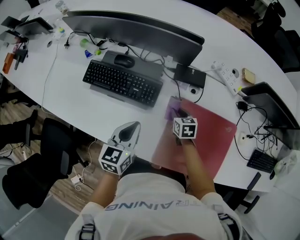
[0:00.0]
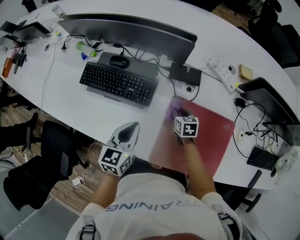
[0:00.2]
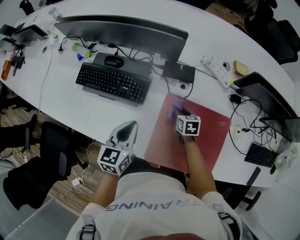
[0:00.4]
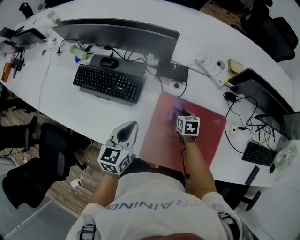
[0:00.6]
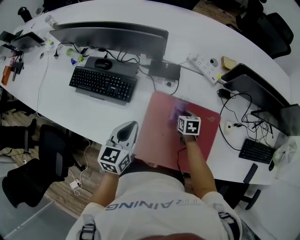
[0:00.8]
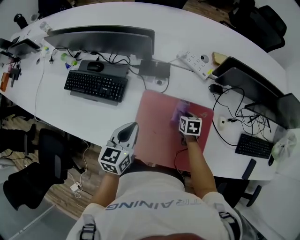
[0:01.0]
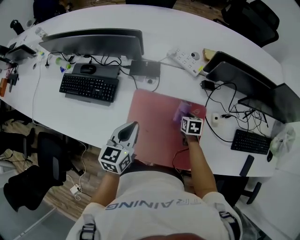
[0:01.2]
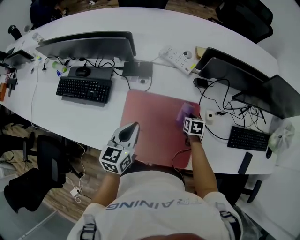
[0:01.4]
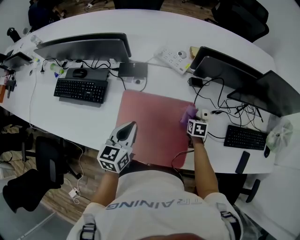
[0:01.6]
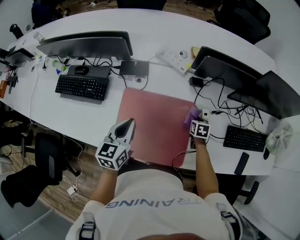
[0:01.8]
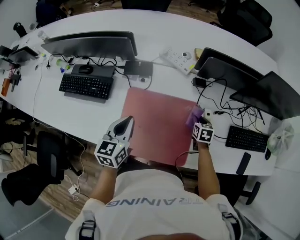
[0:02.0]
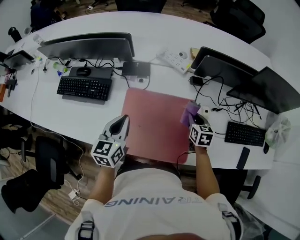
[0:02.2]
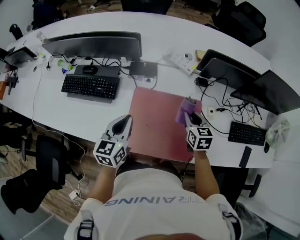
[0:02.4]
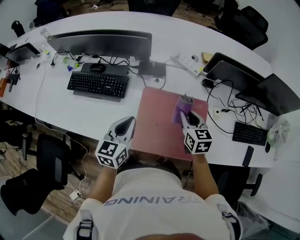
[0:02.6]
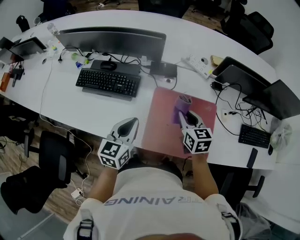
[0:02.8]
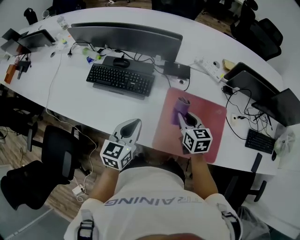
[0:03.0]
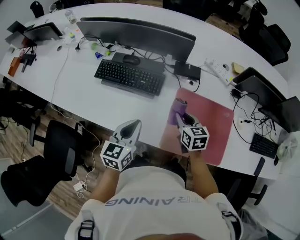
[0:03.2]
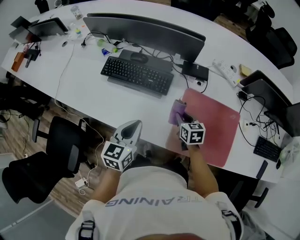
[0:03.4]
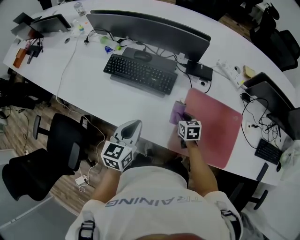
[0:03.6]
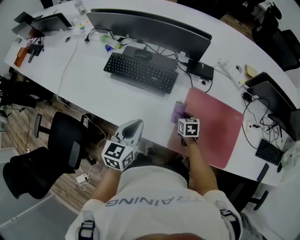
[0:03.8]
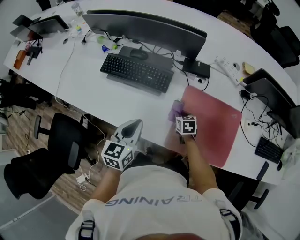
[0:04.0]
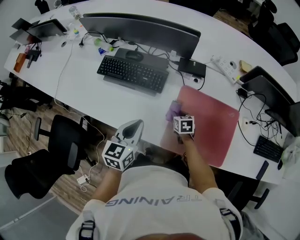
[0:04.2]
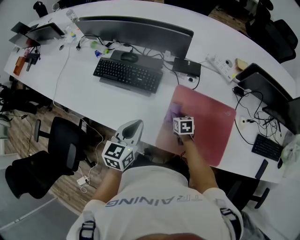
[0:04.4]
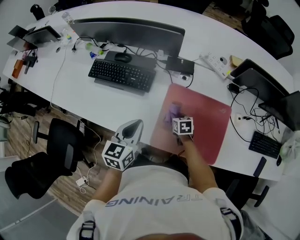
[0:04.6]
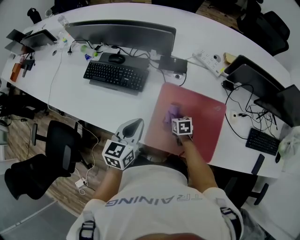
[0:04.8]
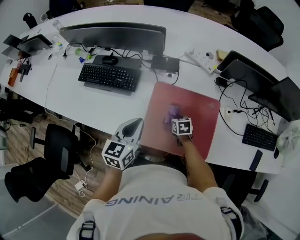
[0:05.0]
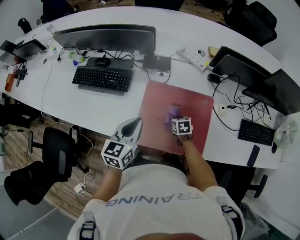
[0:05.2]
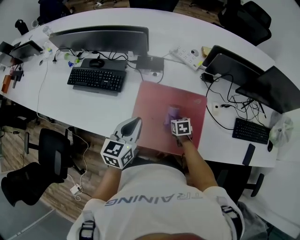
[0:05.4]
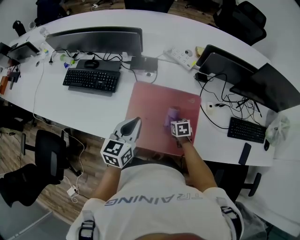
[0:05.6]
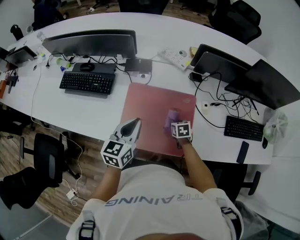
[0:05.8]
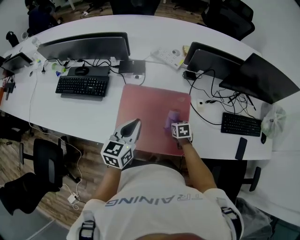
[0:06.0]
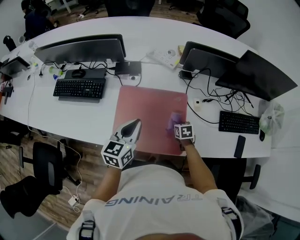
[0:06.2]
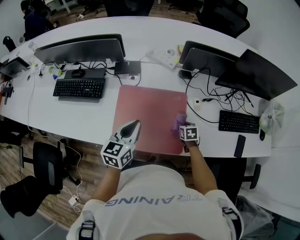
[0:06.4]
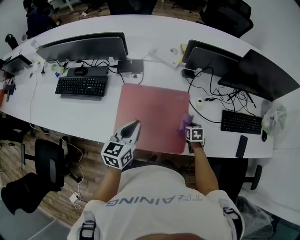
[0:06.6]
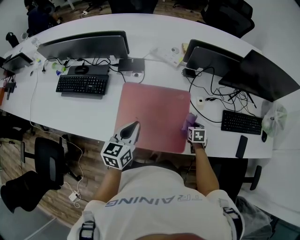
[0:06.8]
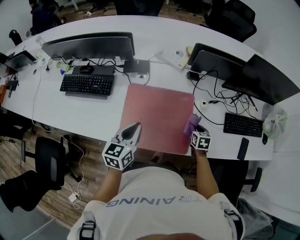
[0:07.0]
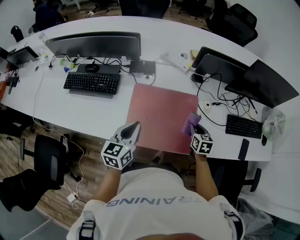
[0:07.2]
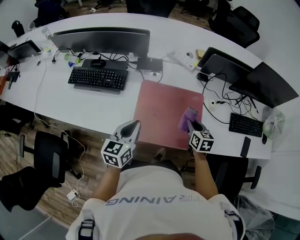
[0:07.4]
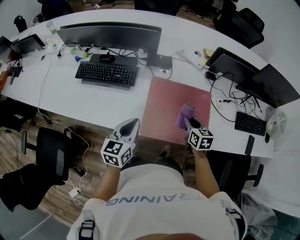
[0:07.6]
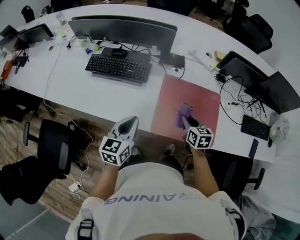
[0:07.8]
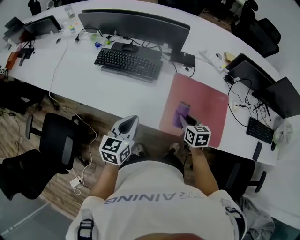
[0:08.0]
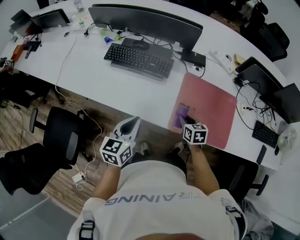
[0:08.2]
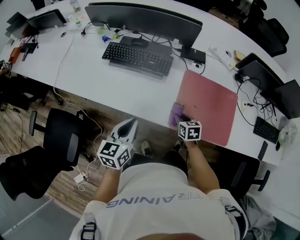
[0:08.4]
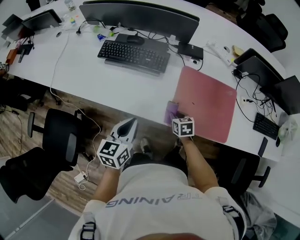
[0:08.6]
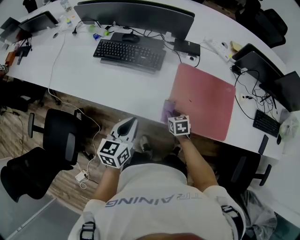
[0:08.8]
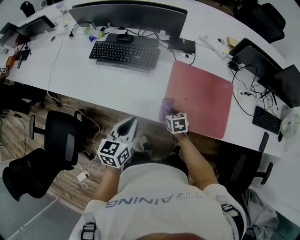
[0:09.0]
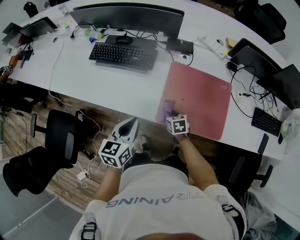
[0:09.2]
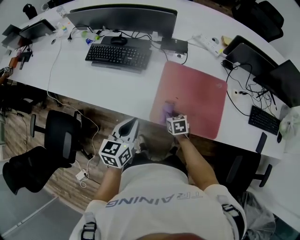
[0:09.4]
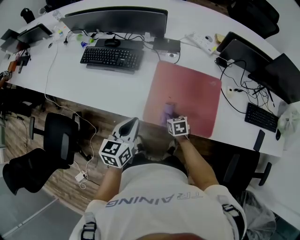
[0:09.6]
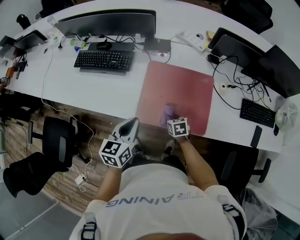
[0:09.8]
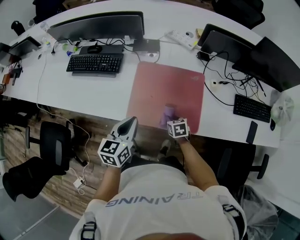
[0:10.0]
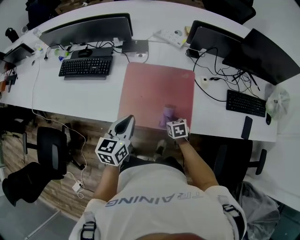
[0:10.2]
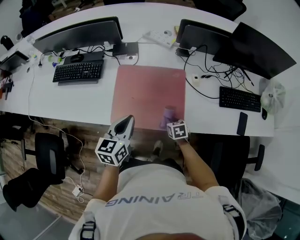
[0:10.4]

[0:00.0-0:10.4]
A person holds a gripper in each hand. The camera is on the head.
0.0 to 1.4 s: The two grippers go about 30 cm to the right.
1.4 to 3.0 s: The left gripper goes roughly 20 cm to the left; the right gripper moves to the left and upward, approximately 35 cm, and turns by approximately 30 degrees.
3.0 to 4.4 s: The right gripper heads downward, covering some 20 cm, and turns by some 20 degrees. The left gripper goes to the left and returns, about 10 cm each way.
4.4 to 6.0 s: Both grippers travel together to the right, approximately 25 cm.
6.0 to 7.4 s: The right gripper moves upward, some 15 cm, travels to the right and back again, some 10 cm each way, and changes its angle by about 20 degrees. The left gripper travels to the left and backward by roughly 15 cm.
7.4 to 9.0 s: The left gripper shifts some 15 cm to the left, while the right gripper is displaced to the left and downward by some 30 cm, and rotates some 30 degrees.
9.0 to 10.4 s: The grippers both shift to the right by some 30 cm.

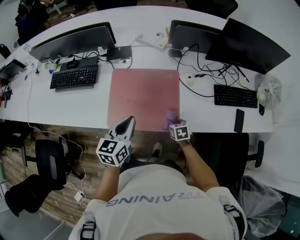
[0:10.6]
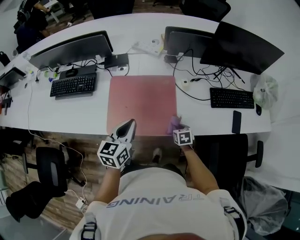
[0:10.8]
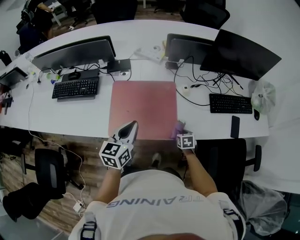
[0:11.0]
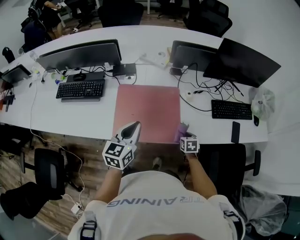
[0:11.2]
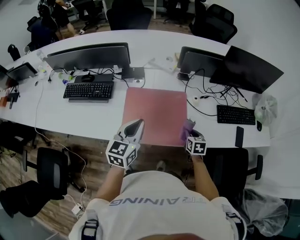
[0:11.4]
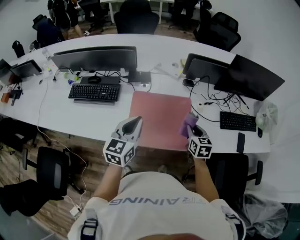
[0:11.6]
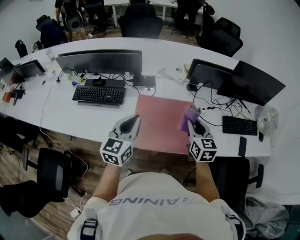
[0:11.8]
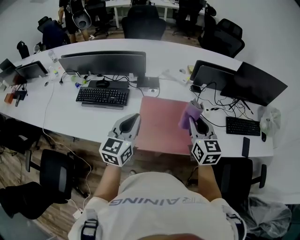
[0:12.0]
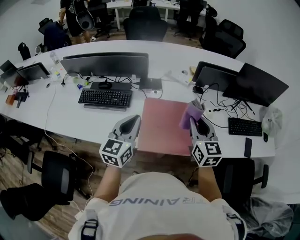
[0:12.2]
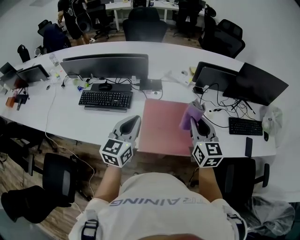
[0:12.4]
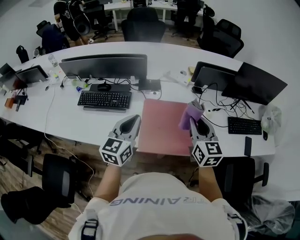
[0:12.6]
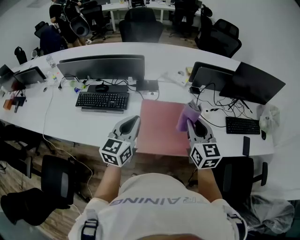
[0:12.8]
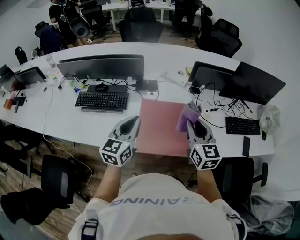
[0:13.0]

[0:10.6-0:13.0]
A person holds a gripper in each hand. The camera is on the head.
10.6 to 11.8 s: The left gripper goes approximately 20 cm upward and to the left. Meanwhile the right gripper heads upward, covering about 30 cm, and angles its fingers upward, by roughly 40 degrees.
11.8 to 13.0 s: The right gripper travels upward by about 5 cm.

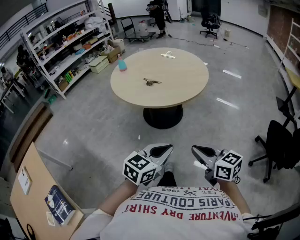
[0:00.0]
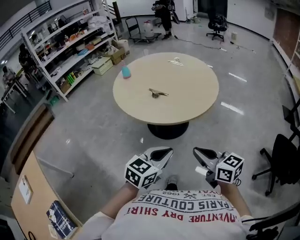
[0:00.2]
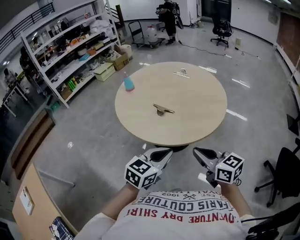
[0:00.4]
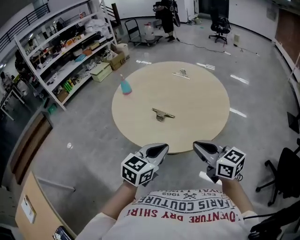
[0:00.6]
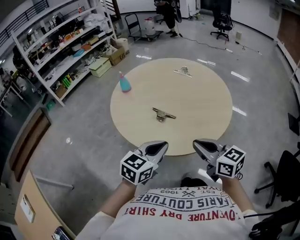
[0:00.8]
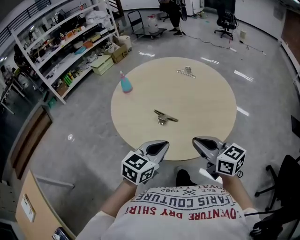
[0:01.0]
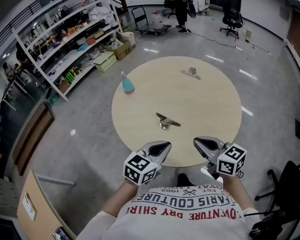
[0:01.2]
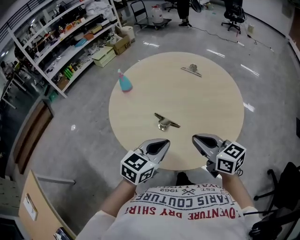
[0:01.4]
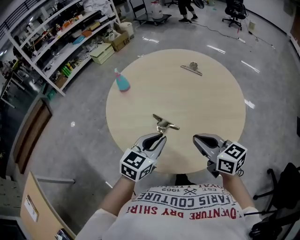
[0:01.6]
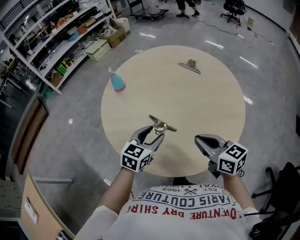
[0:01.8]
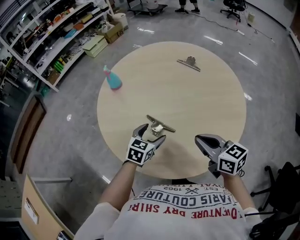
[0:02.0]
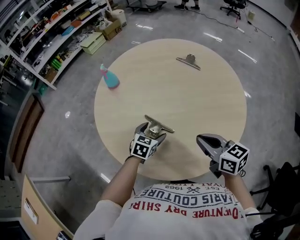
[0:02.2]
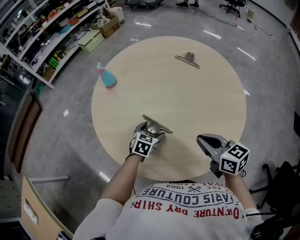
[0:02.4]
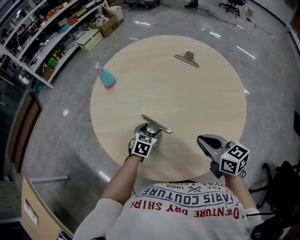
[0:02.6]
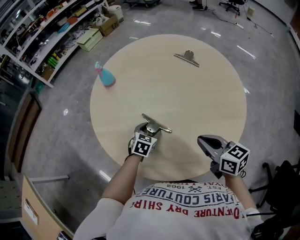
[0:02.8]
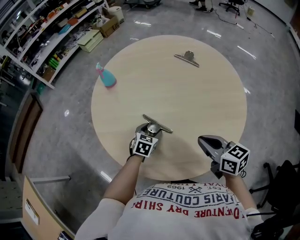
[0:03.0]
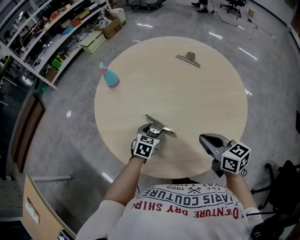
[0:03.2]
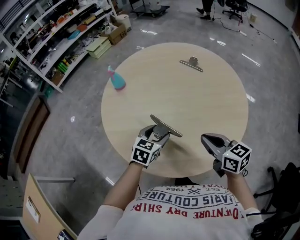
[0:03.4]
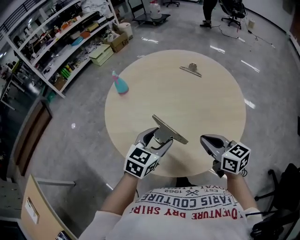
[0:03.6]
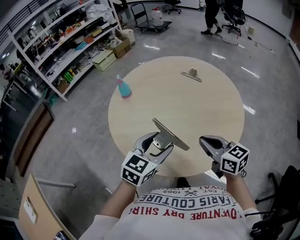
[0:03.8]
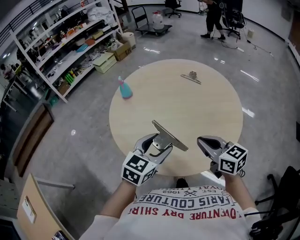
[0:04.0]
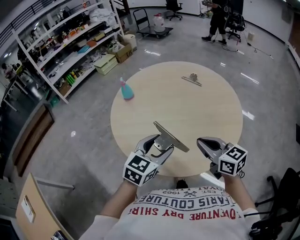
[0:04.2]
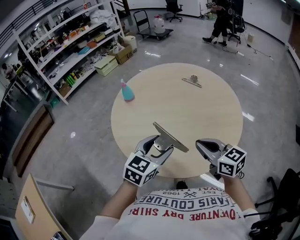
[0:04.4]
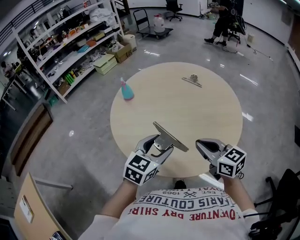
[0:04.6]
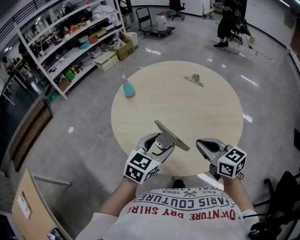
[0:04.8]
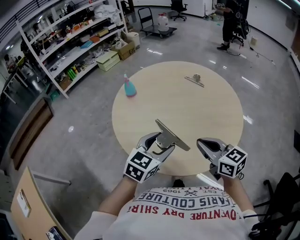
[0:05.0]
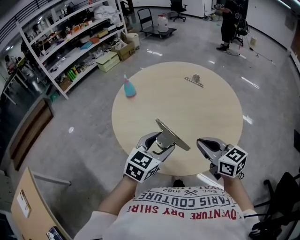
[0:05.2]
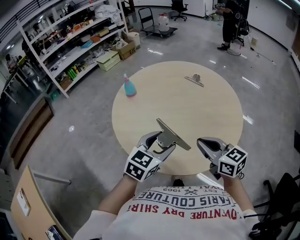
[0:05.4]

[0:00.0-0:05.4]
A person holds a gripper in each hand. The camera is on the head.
0.0 to 1.4 s: The two grippers travel together, forward, roughly 50 cm.
1.4 to 2.8 s: The left gripper travels downward and forward by approximately 30 cm, changes its angle by roughly 30 degrees, and opens. The right gripper goes about 15 cm downward, forward and to the right.
2.8 to 4.0 s: The left gripper travels upward and backward by some 30 cm, and changes its angle by some 30 degrees. The right gripper travels upward and backward by approximately 10 cm.
4.0 to 5.4 s: There are only small adjustments of the grippers.

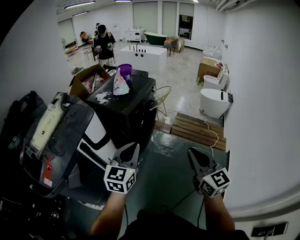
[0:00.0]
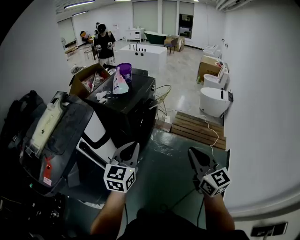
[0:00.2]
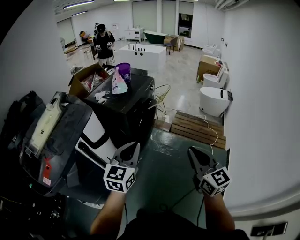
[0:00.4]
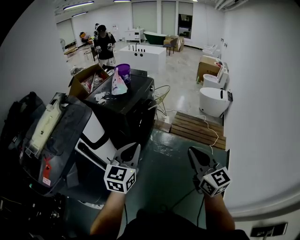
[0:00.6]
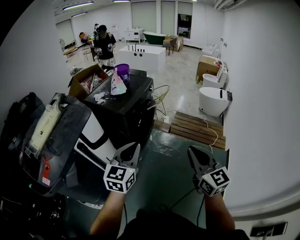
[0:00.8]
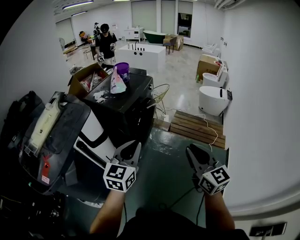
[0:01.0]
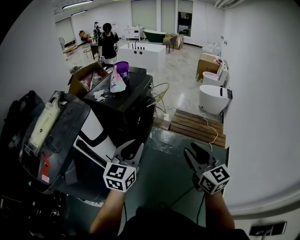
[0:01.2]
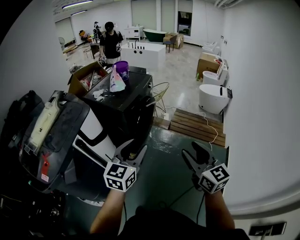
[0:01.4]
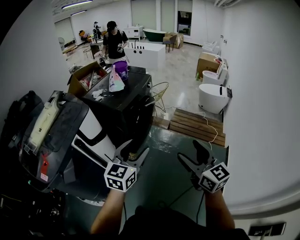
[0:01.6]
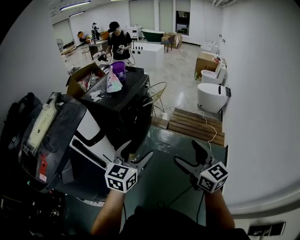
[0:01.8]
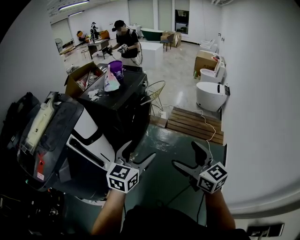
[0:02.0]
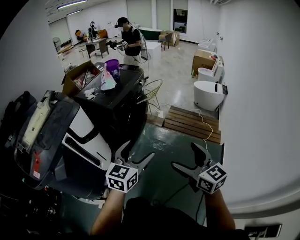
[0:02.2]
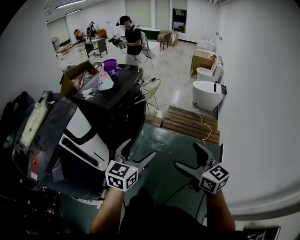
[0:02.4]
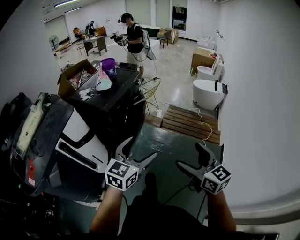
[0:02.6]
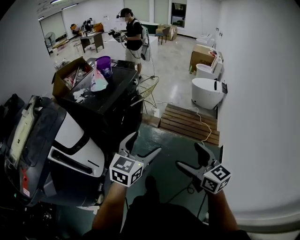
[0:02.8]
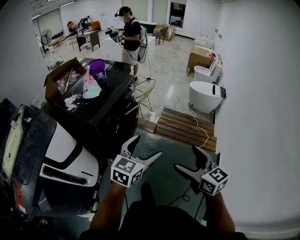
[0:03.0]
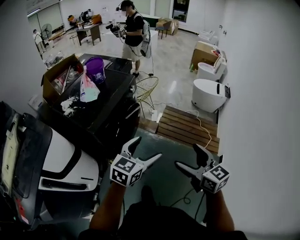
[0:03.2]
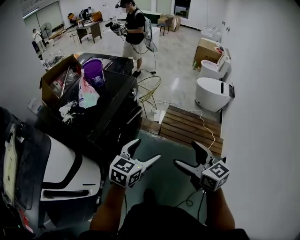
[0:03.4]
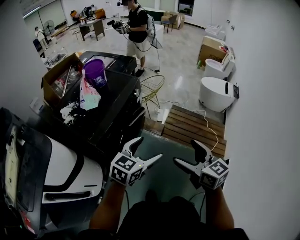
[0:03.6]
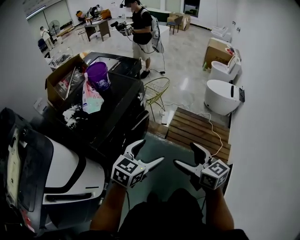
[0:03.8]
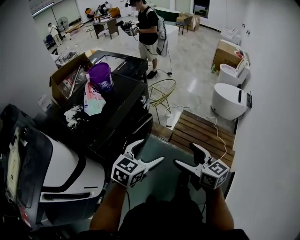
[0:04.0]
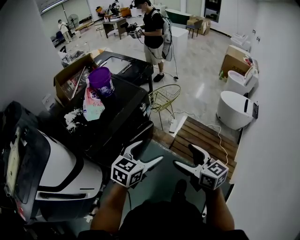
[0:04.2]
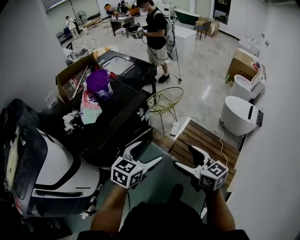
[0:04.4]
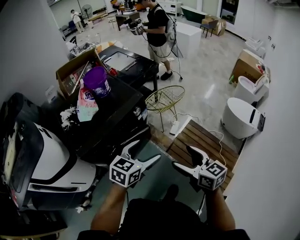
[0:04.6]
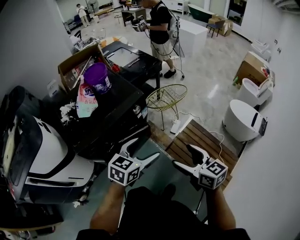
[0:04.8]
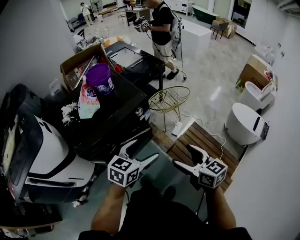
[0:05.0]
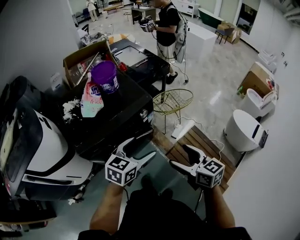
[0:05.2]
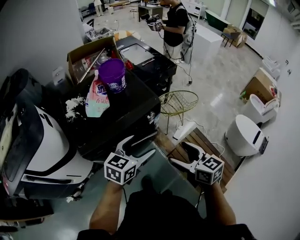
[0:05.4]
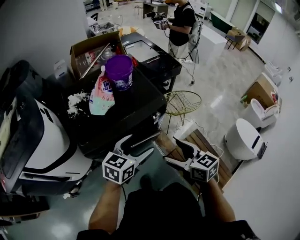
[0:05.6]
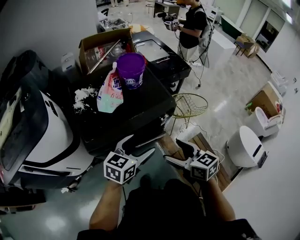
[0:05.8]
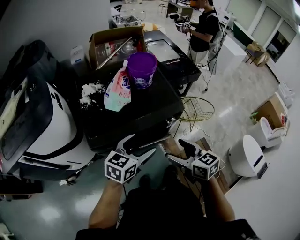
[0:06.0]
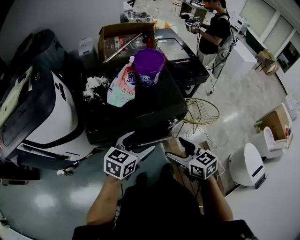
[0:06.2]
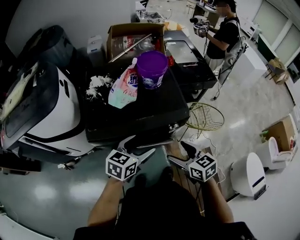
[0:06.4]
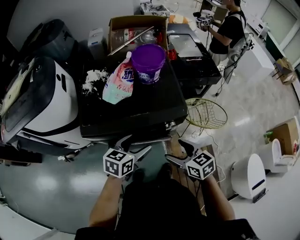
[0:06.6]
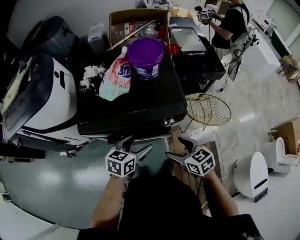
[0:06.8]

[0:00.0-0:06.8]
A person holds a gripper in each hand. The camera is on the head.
0.0 to 1.4 s: The left gripper moves to the right, some 5 cm, and opens its fingers; the right gripper opens up.
1.4 to 2.8 s: The right gripper heads to the right, forward and downward, covering roughly 15 cm, and opens, while the left gripper travels to the right and forward by about 15 cm, and opens.
2.8 to 4.0 s: The grippers both shift forward by some 35 cm.
4.0 to 5.4 s: The left gripper changes place by some 20 cm, and rotates some 30 degrees; the right gripper ends up roughly 20 cm from where it was, and turns by some 30 degrees.
5.4 to 6.8 s: The left gripper is displaced downward by about 10 cm, and turns by about 30 degrees. The right gripper shifts by about 20 cm, and turns by roughly 40 degrees.
